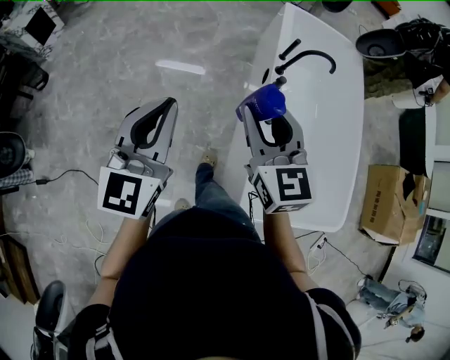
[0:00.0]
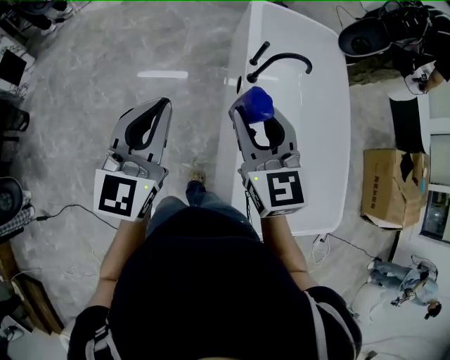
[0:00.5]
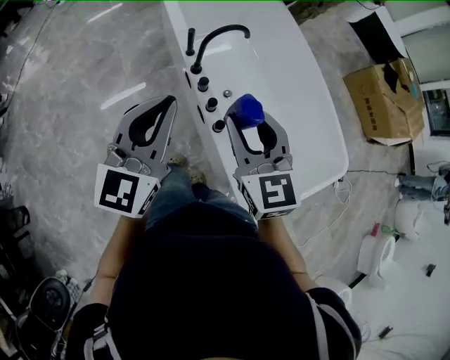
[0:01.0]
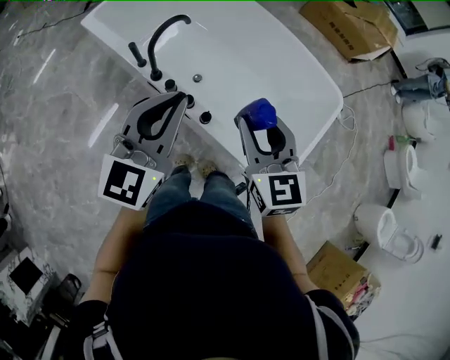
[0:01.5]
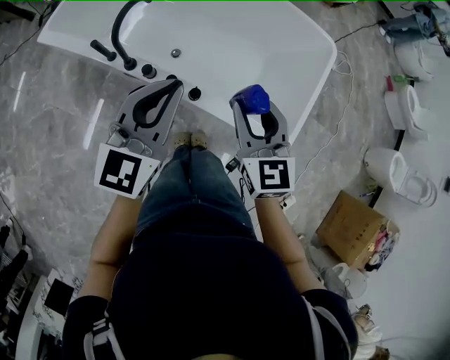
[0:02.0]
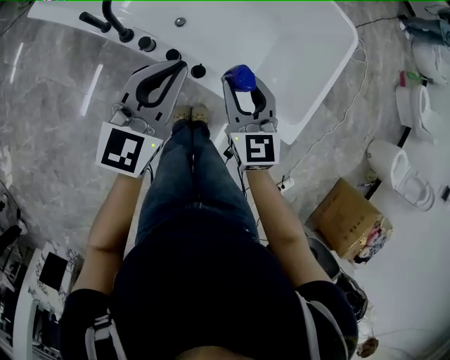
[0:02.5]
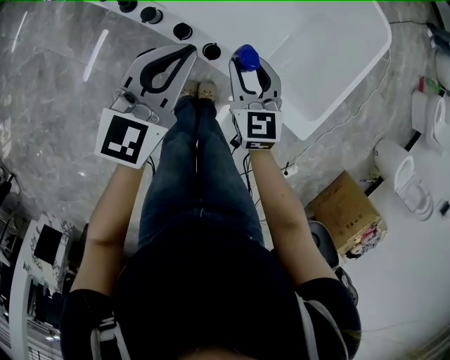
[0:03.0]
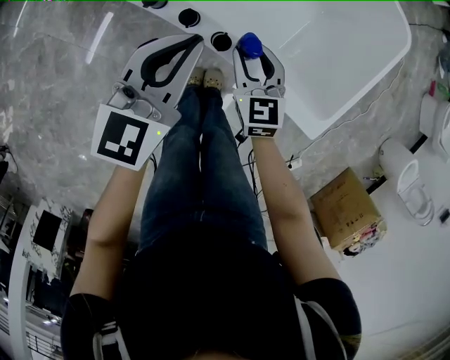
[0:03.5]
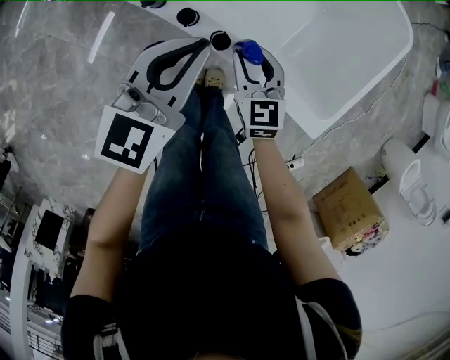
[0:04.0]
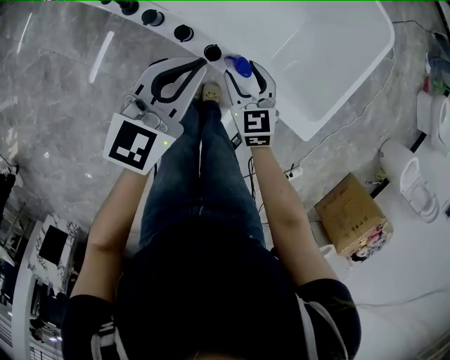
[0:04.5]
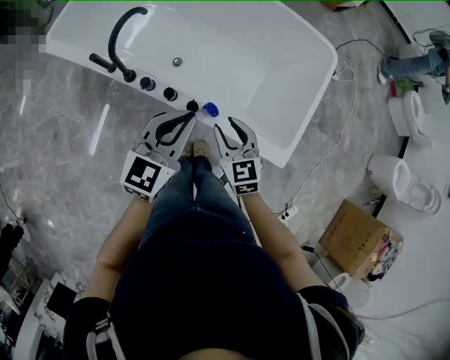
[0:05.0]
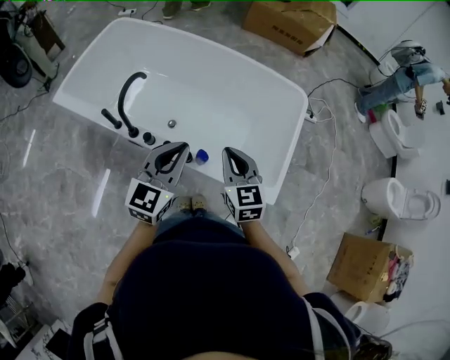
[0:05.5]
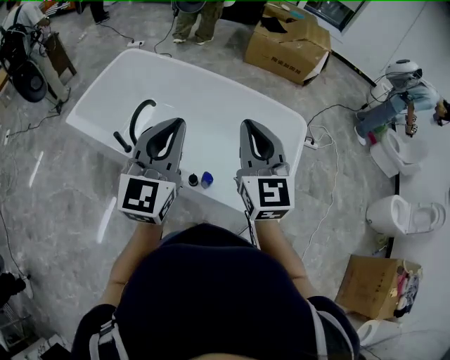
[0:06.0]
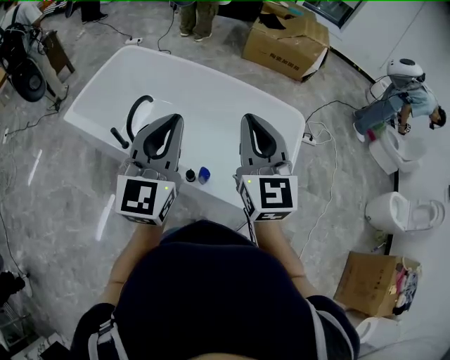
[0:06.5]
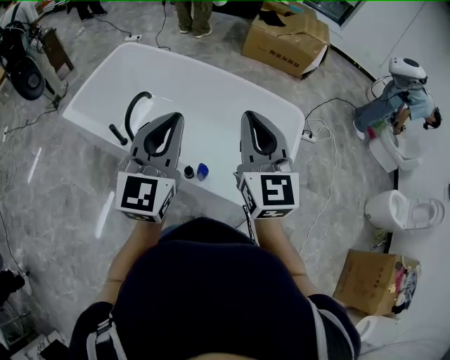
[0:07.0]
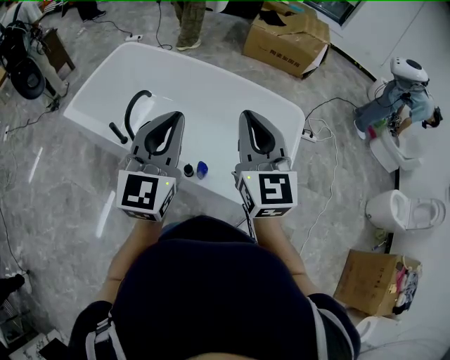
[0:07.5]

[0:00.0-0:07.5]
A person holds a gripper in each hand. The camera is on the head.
0:00.0 to 0:02.0: The right gripper moves approximately 30 cm, and turns by some 80 degrees. The left gripper ends up about 40 cm from where it was, and changes its angle by about 80 degrees.
0:02.0 to 0:04.0: The two grippers go about 25 cm downward.
0:04.0 to 0:05.5: The grippers both shift upward by roughly 25 cm. The right gripper closes its fingers.
0:05.5 to 0:07.5: The two grippers go approximately 20 cm upward. The right gripper changes its angle by some 20 degrees. The left gripper rotates some 20 degrees.

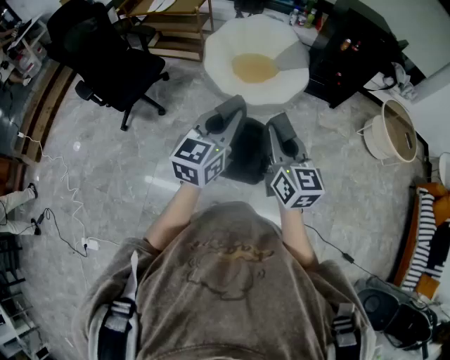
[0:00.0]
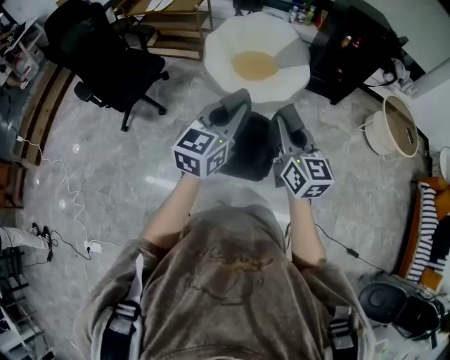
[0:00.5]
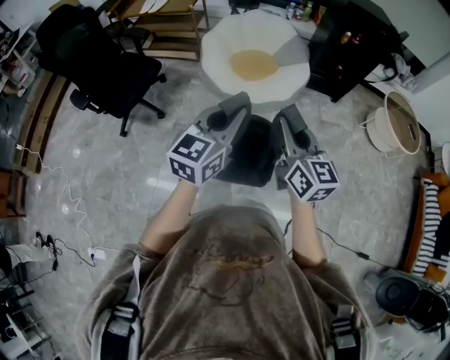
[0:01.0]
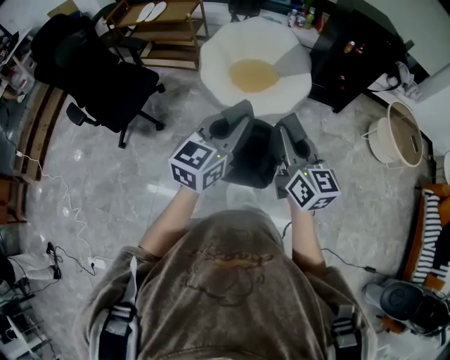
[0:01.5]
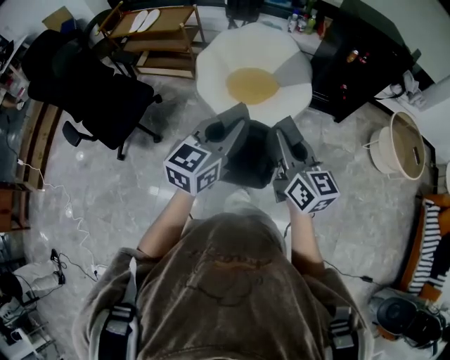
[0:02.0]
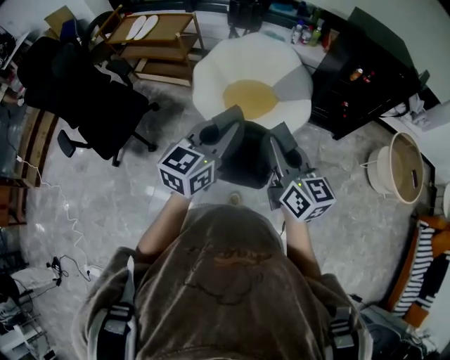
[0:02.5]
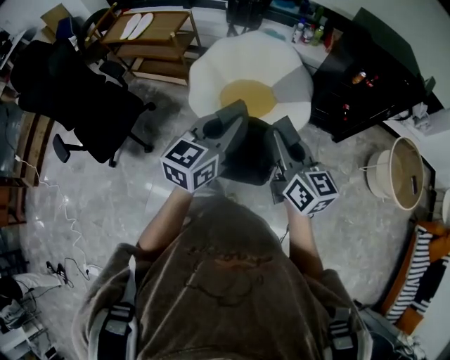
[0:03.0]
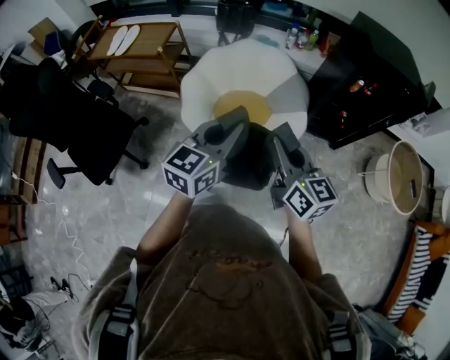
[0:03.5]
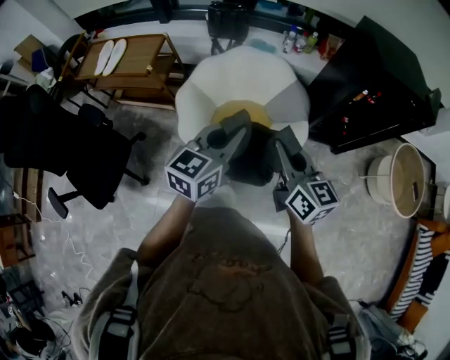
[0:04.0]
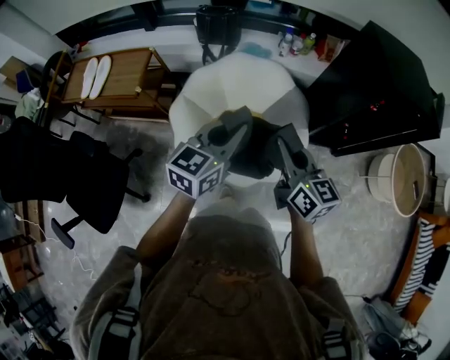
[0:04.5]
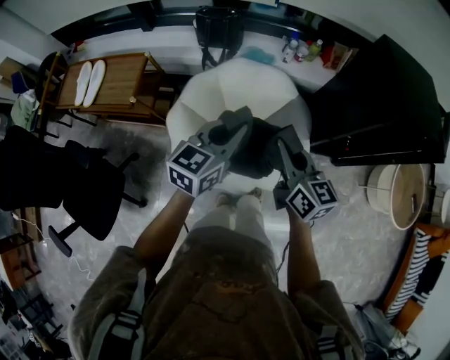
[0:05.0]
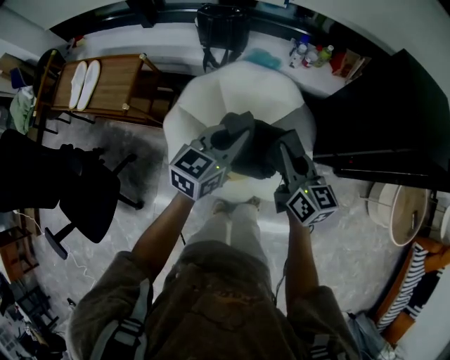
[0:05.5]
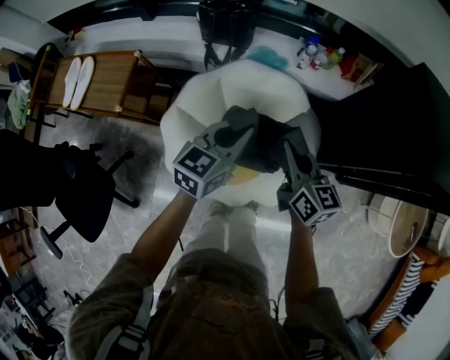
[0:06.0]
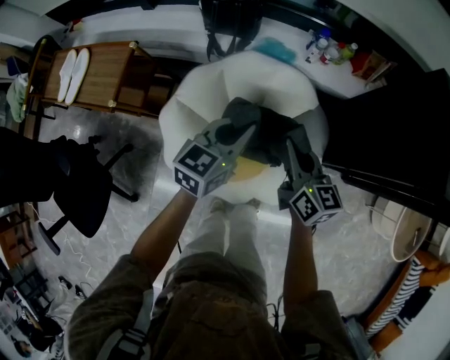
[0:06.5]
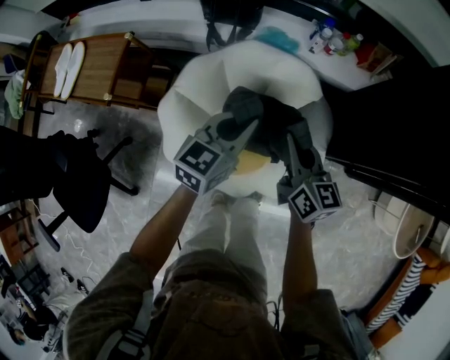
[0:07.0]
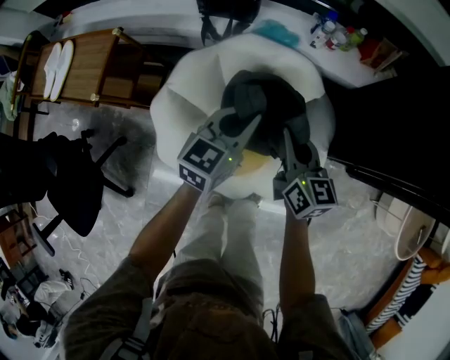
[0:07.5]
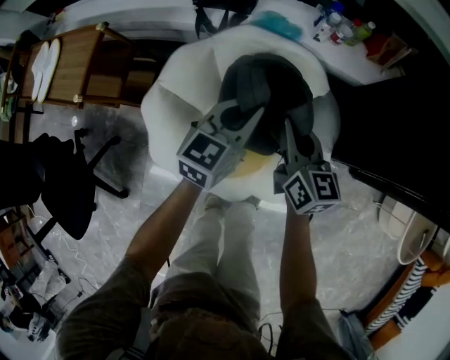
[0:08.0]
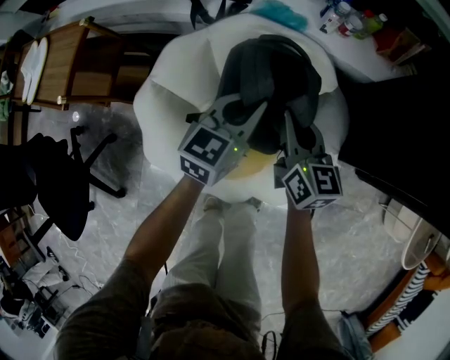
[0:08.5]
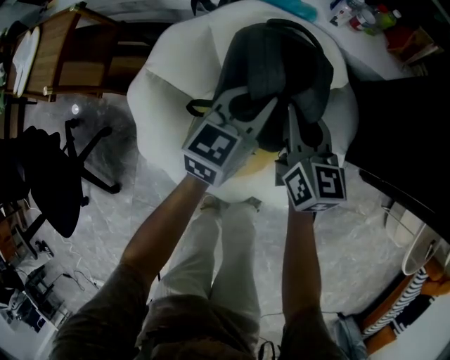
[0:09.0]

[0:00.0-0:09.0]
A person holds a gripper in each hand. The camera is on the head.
0:00.0 to 0:02.0: Both grippers travel together forward, about 25 cm.
0:02.0 to 0:04.5: Both grippers are carried forward, approximately 50 cm.
0:04.5 to 0:07.0: The grippers both shift forward and downward by some 30 cm.
0:07.0 to 0:09.0: The left gripper goes roughly 20 cm downward, while the right gripper heads downward and forward, covering about 20 cm.

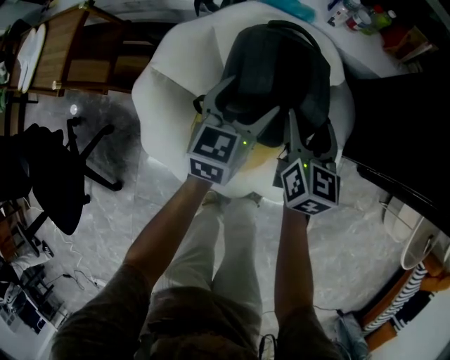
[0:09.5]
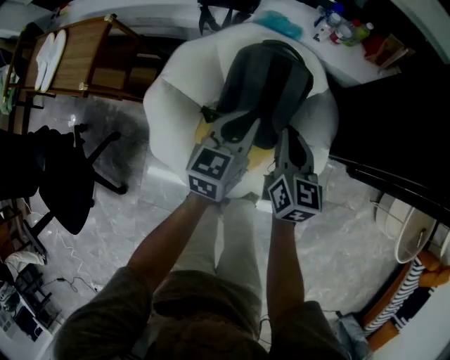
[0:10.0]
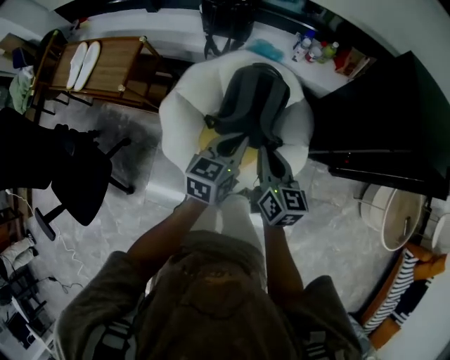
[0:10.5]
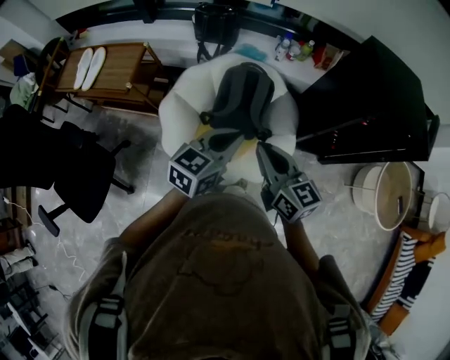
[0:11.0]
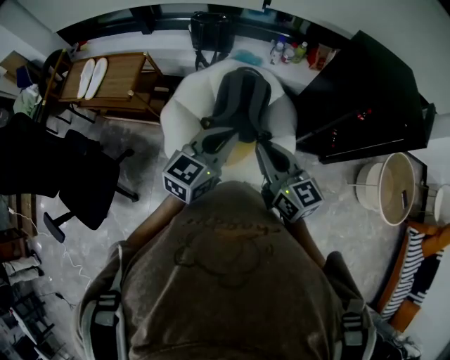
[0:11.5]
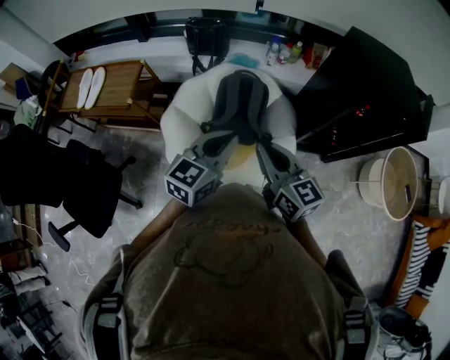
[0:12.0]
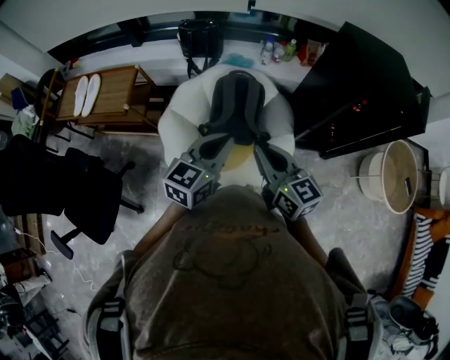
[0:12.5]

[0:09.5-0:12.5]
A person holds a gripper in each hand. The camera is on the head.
0:09.5 to 0:11.0: Both grippers travel together upward and backward, approximately 40 cm. The right gripper turns by about 30 degrees, and closes up, while the left gripper closes up.
0:11.0 to 0:12.5: There are only small adjustments of the grippers.

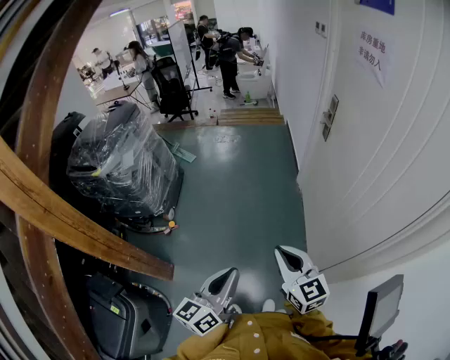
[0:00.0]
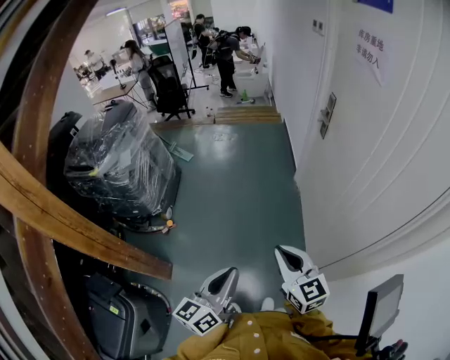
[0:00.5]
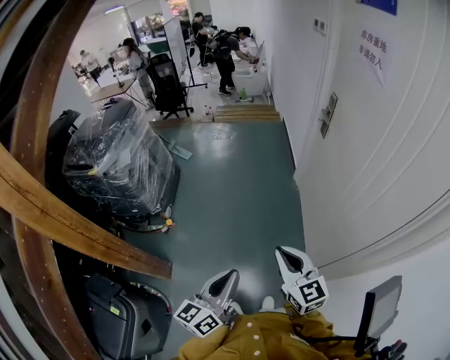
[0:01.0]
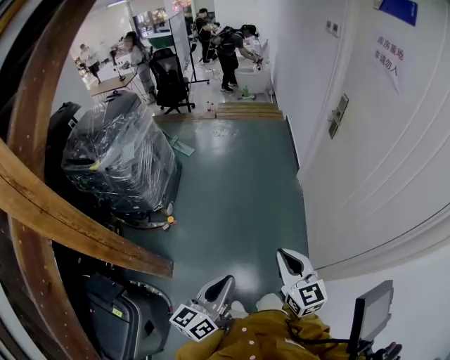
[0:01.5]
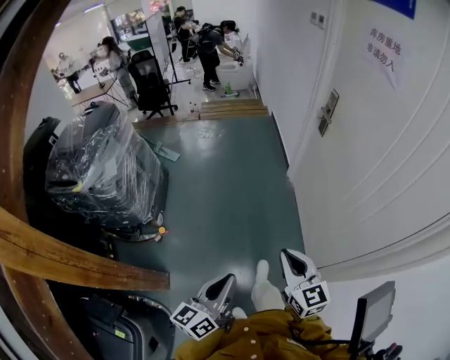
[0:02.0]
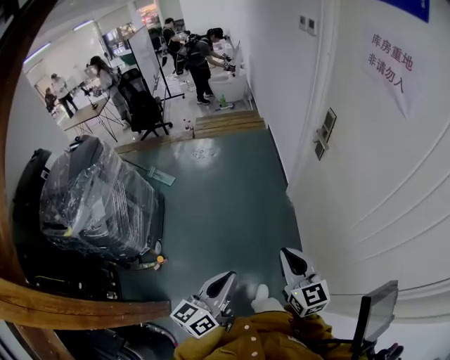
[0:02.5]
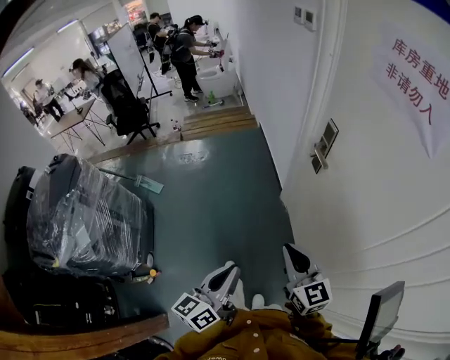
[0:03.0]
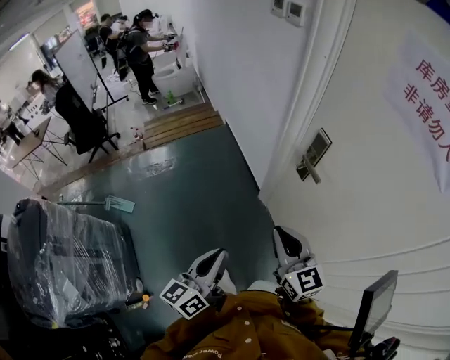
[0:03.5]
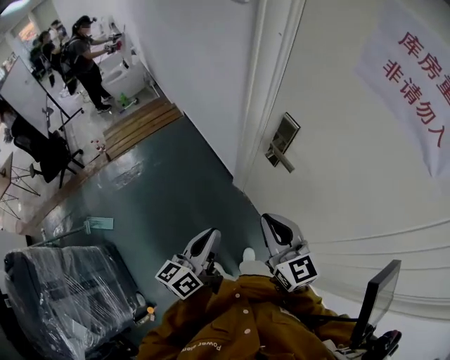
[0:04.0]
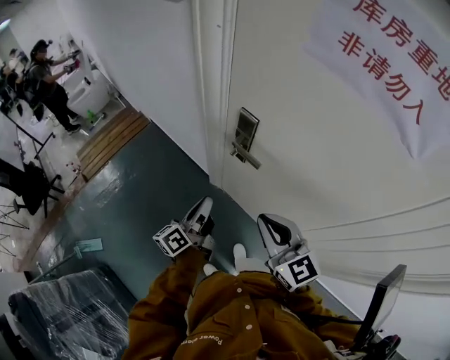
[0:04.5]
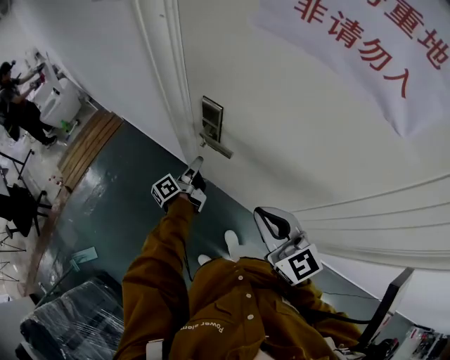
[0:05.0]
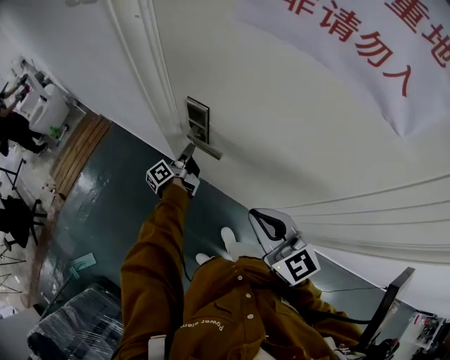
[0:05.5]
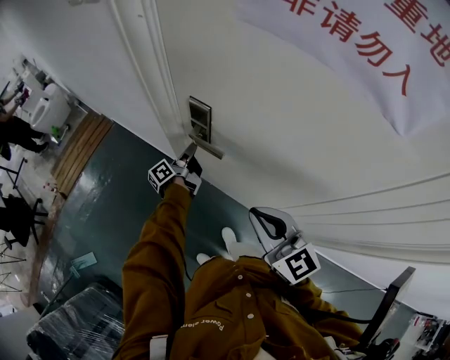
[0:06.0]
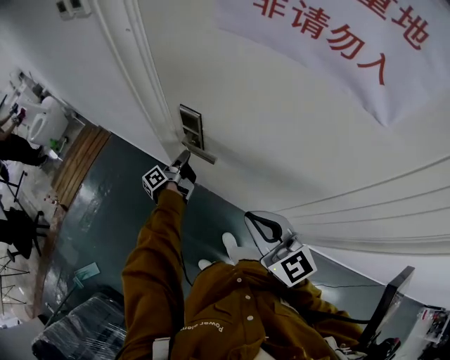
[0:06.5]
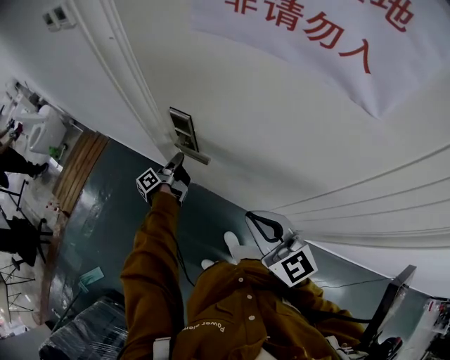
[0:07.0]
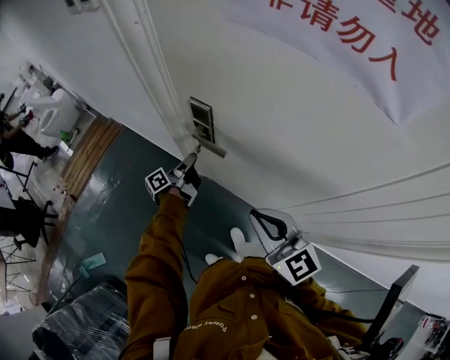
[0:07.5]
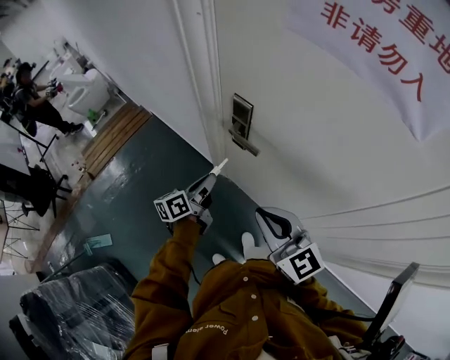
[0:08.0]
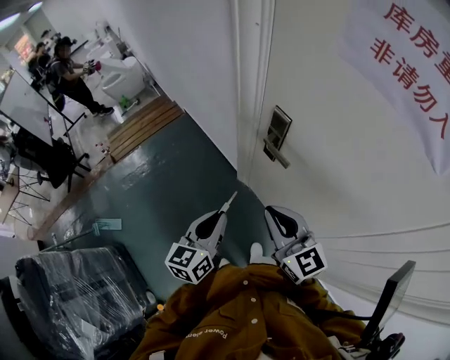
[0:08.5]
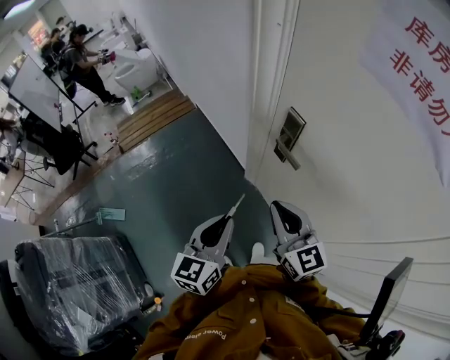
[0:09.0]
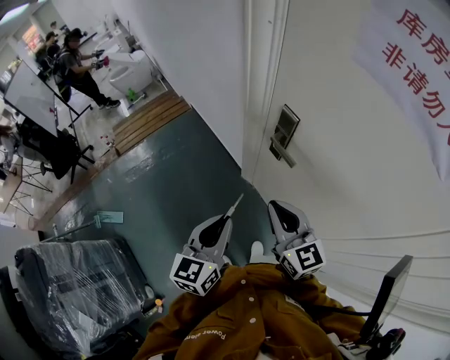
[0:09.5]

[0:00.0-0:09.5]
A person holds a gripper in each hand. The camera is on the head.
0:00.0 to 0:02.0: The right gripper moves forward, some 5 cm. The left gripper moves forward and to the left, roughly 10 cm.
0:02.0 to 0:04.0: The two grippers travel together, about 70 cm. The left gripper changes its angle by about 30 degrees, while the right gripper turns by some 30 degrees.
0:04.0 to 0:05.5: The left gripper shifts roughly 40 cm forward, downward and to the right, and swivels approximately 40 degrees, while the right gripper is displaced to the right by about 15 cm.
0:05.5 to 0:07.5: The left gripper ends up approximately 5 cm from where it was.
0:07.5 to 0:09.5: The right gripper is displaced to the left by approximately 10 cm; the left gripper heads backward and upward, covering approximately 30 cm, and twists approximately 60 degrees clockwise, seen from behind.
